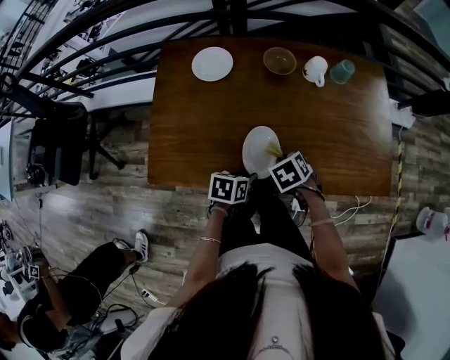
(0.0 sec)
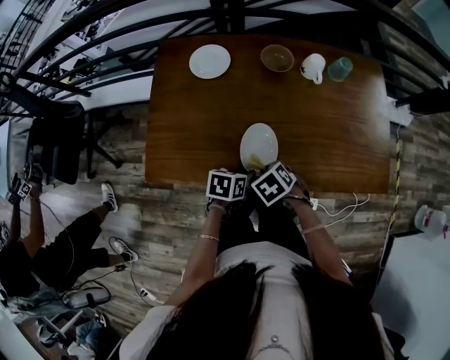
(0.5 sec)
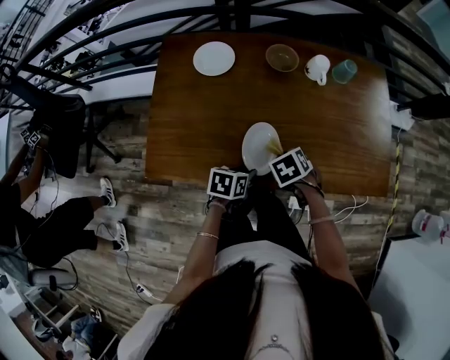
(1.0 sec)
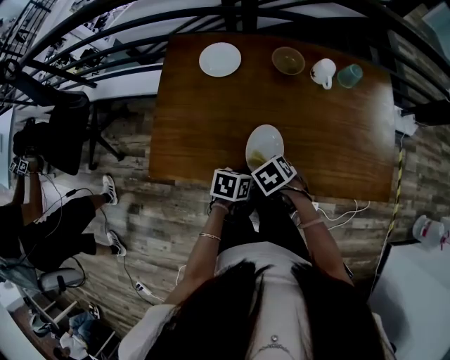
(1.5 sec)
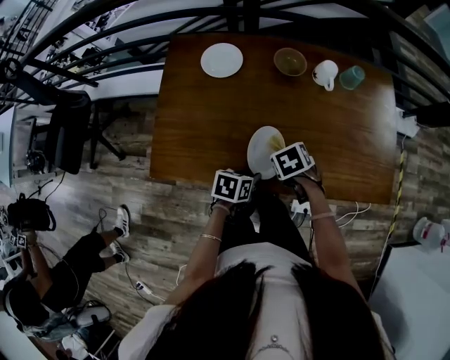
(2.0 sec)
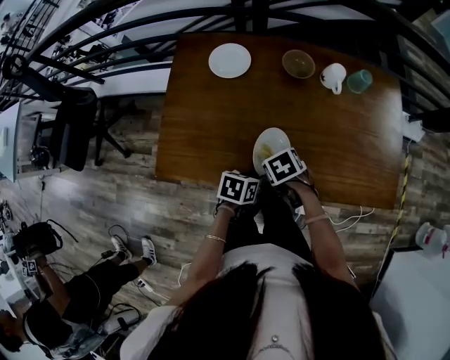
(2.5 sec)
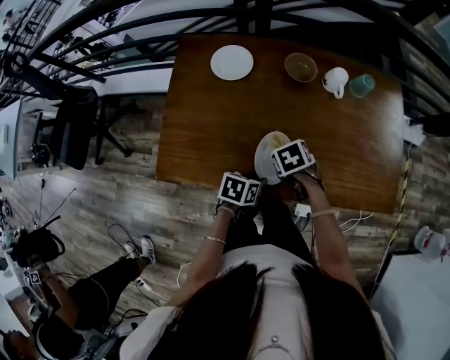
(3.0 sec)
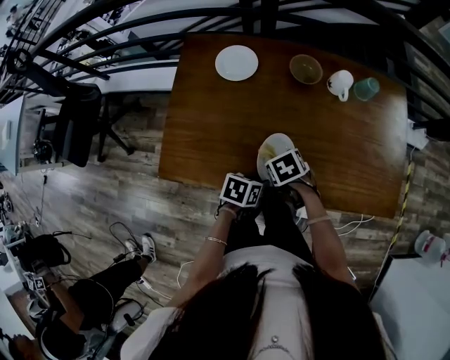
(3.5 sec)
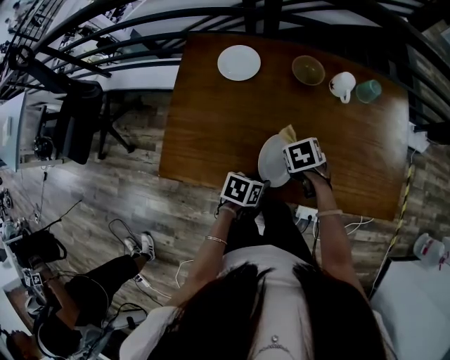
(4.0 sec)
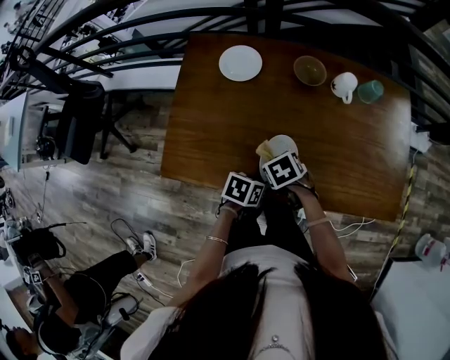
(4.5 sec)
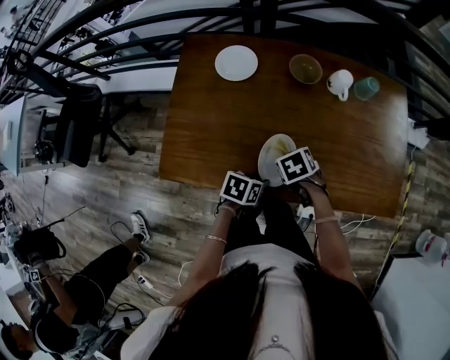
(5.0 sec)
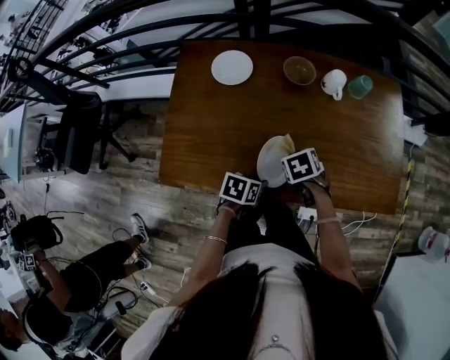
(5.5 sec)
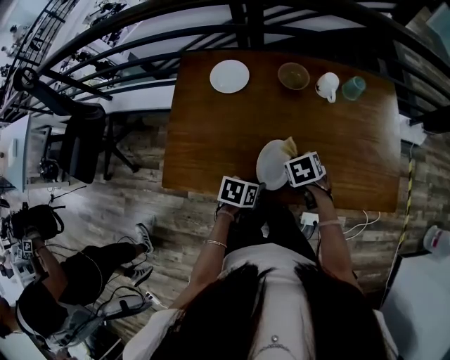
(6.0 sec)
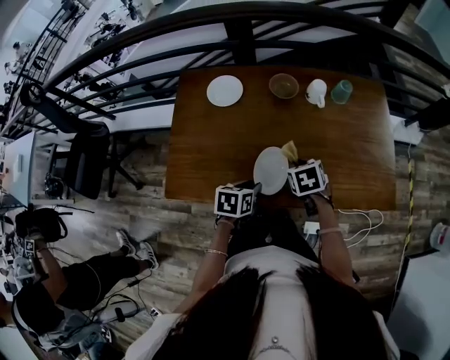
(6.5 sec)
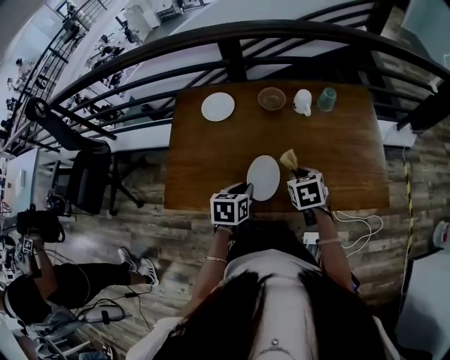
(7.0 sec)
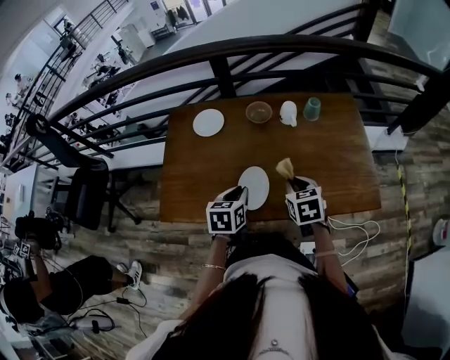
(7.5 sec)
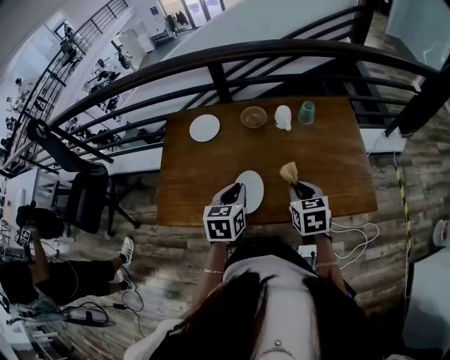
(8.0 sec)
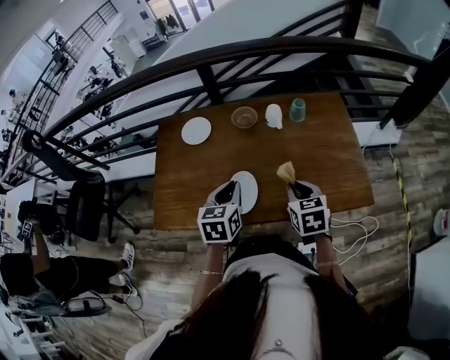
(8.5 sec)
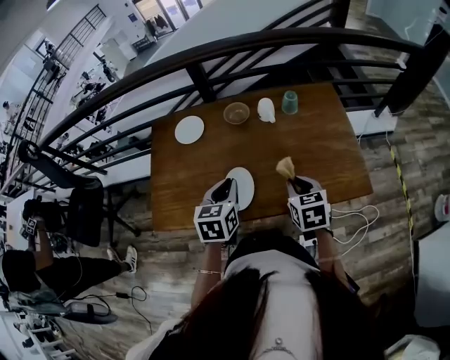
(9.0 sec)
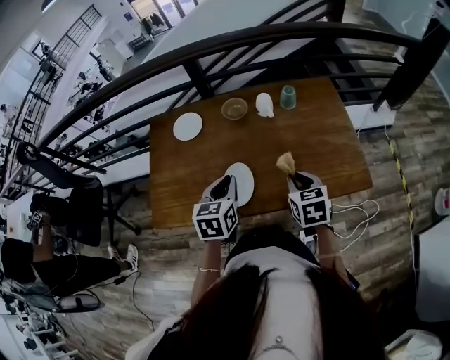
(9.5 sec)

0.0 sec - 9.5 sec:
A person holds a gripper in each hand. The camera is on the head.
5.5 sec - 7.5 sec: Both grippers move upward, approximately 15 cm. The left gripper rotates roughly 30 degrees, while the right gripper swivels roughly 30 degrees.
7.5 sec - 9.5 sec: The left gripper travels upward by roughly 5 cm. The right gripper goes roughly 5 cm to the right.

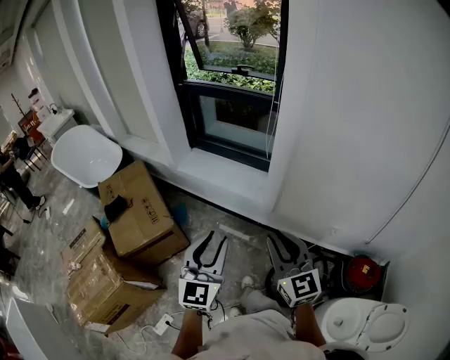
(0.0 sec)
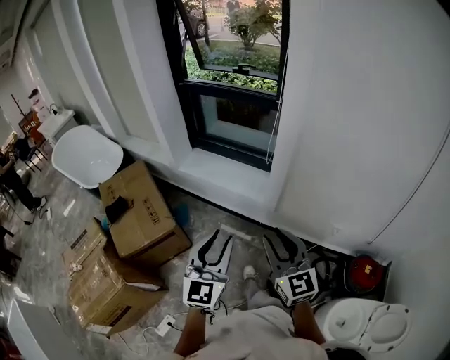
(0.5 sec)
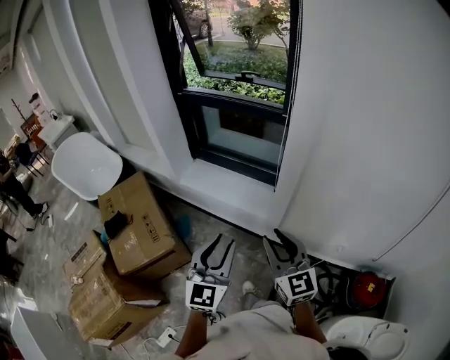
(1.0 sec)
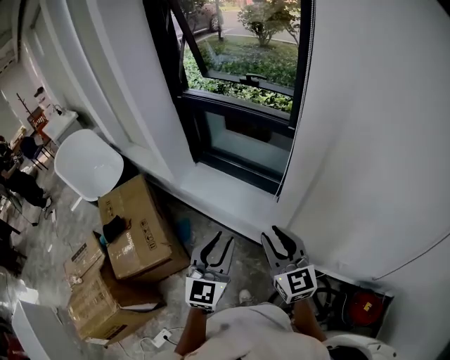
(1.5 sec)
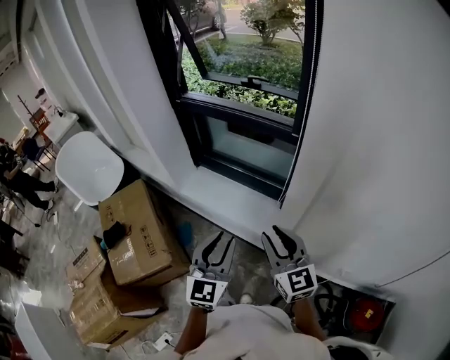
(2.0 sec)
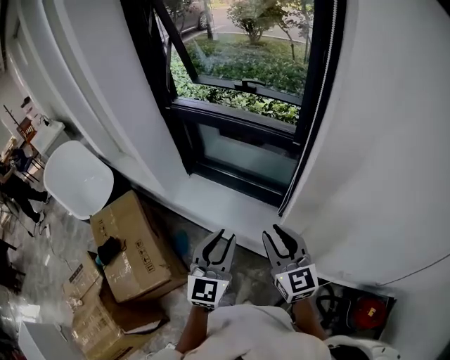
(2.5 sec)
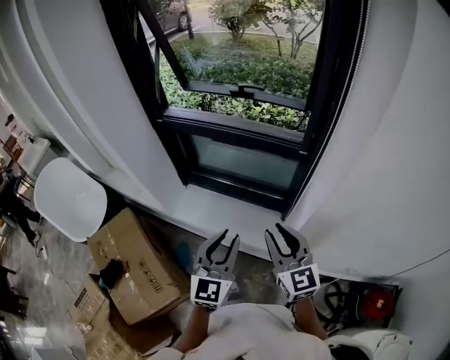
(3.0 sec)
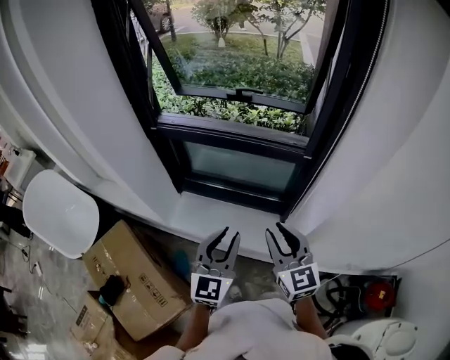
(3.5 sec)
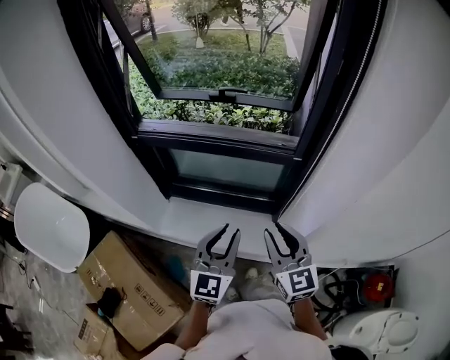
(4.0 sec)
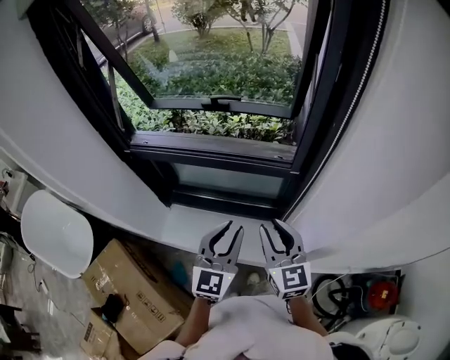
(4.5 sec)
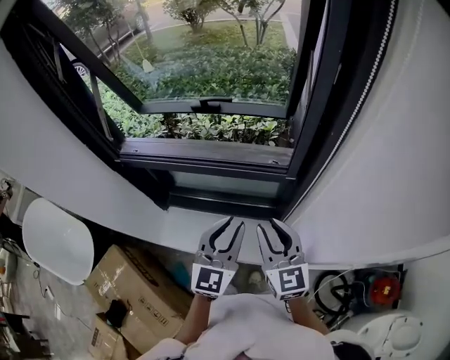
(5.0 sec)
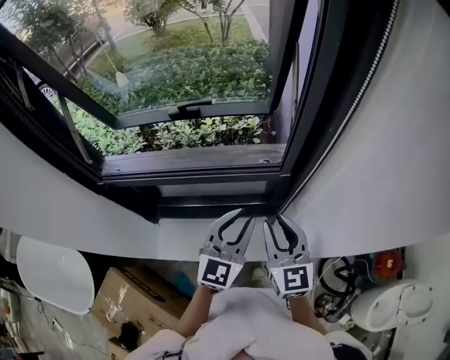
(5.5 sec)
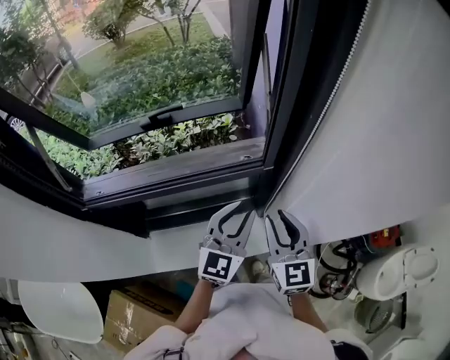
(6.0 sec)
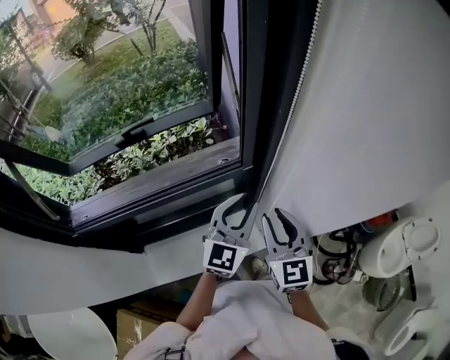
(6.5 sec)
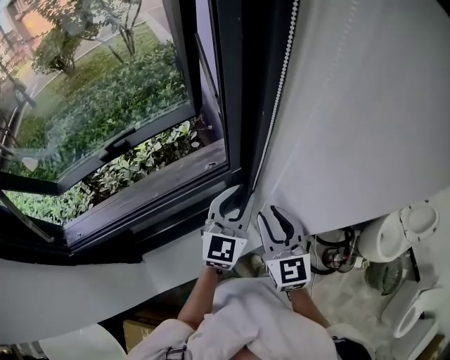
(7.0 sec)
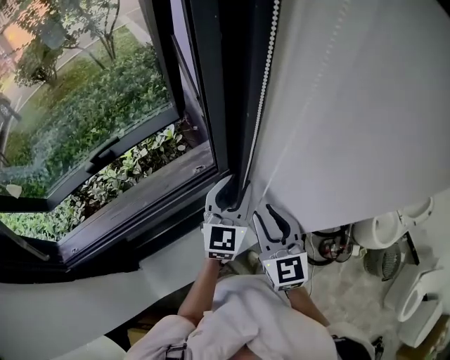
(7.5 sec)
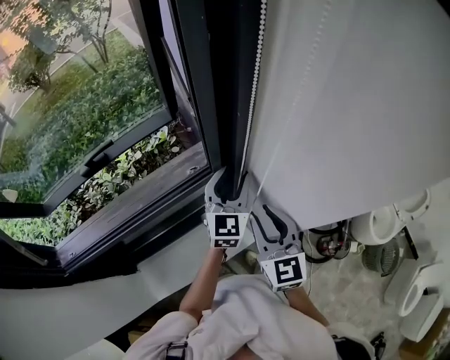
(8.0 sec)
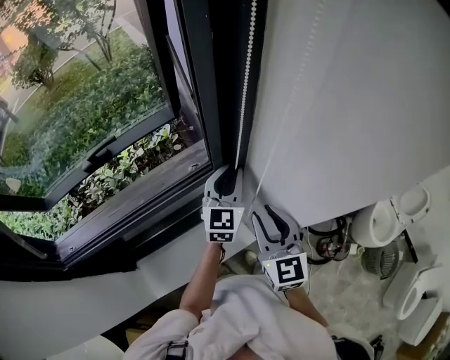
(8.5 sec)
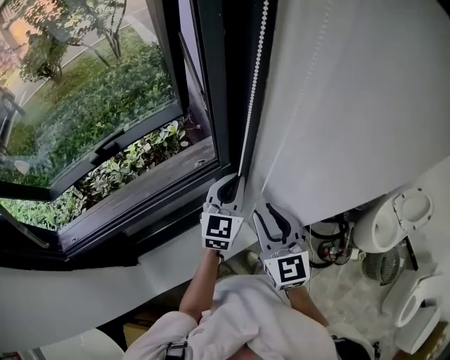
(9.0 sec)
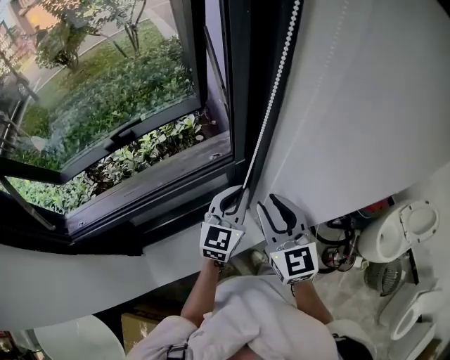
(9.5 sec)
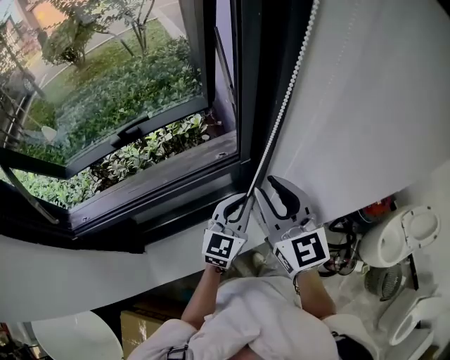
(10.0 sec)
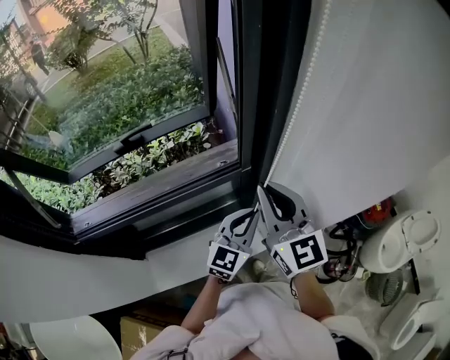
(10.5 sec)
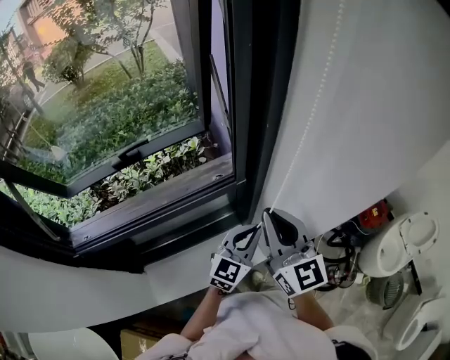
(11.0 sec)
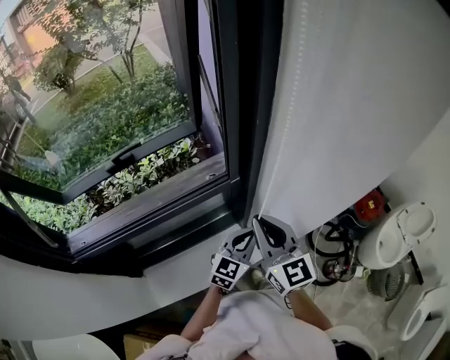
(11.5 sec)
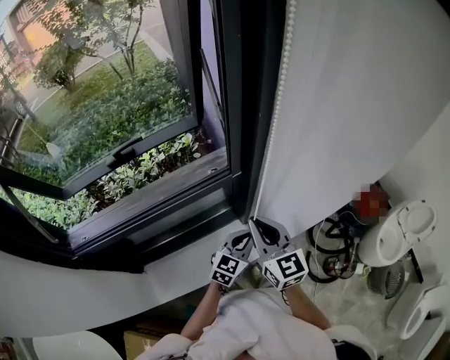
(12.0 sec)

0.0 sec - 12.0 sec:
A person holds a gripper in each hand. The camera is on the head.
0.0 sec - 2.0 sec: Both grippers travel together forward, some 30 cm.
2.0 sec - 4.0 sec: The grippers both shift forward by some 25 cm. The left gripper changes its angle by some 20 degrees. The right gripper turns by some 20 degrees.
4.0 sec - 6.0 sec: The left gripper changes place by roughly 20 cm, and turns by about 30 degrees, while the right gripper changes place by about 15 cm, and rotates about 30 degrees.
6.0 sec - 8.0 sec: The right gripper shifts approximately 5 cm to the right; the left gripper heads forward and to the right, covering approximately 15 cm, and opens its fingers.
8.0 sec - 10.0 sec: The left gripper moves backward, about 10 cm, and closes; the right gripper travels upward and to the left by about 10 cm.
10.0 sec - 12.0 sec: The right gripper heads downward, covering some 10 cm, and closes its fingers. Meanwhile the left gripper shifts about 15 cm downward and backward.

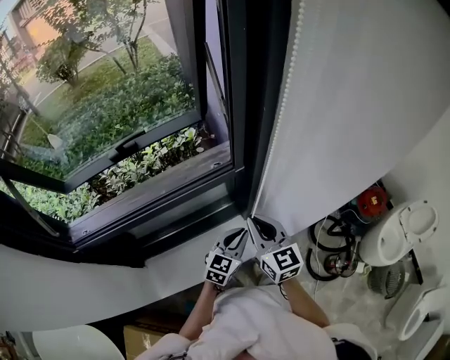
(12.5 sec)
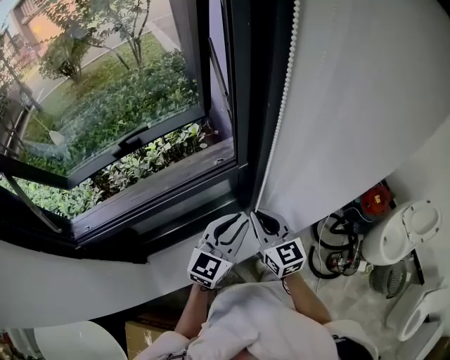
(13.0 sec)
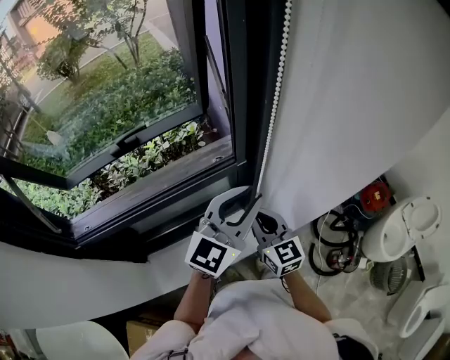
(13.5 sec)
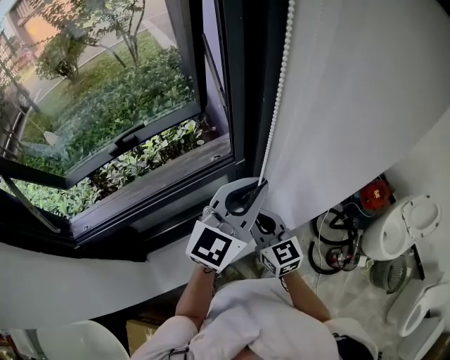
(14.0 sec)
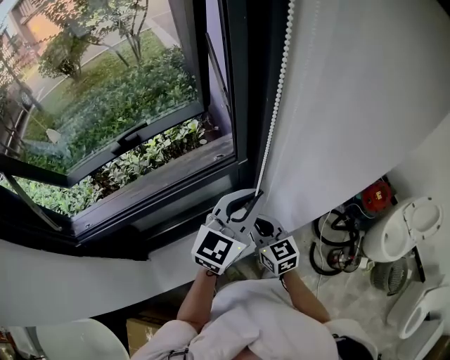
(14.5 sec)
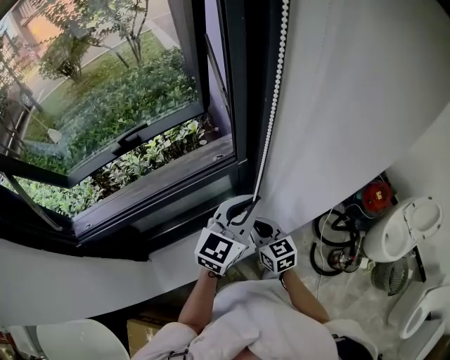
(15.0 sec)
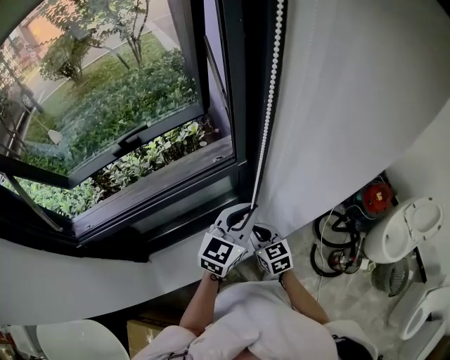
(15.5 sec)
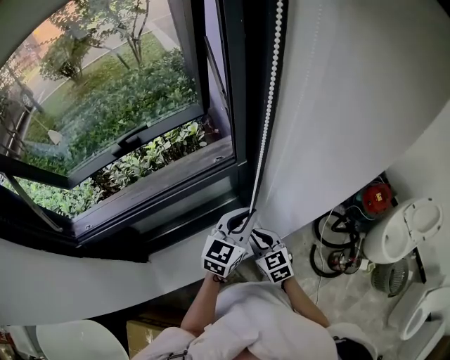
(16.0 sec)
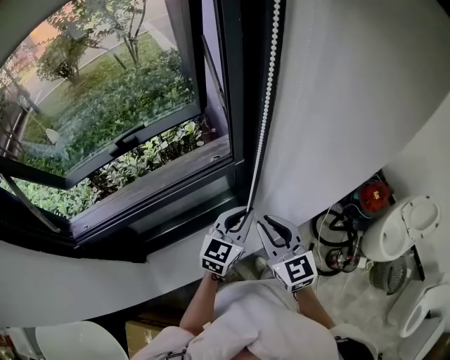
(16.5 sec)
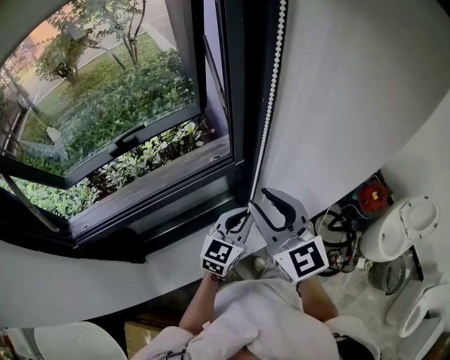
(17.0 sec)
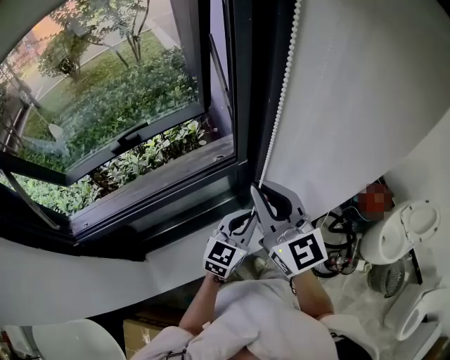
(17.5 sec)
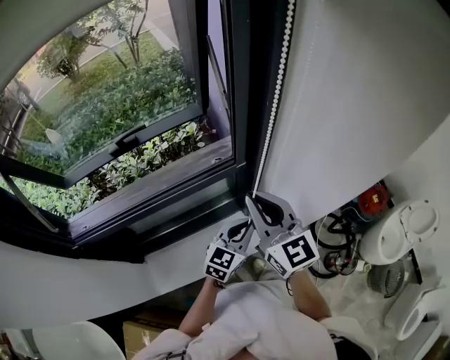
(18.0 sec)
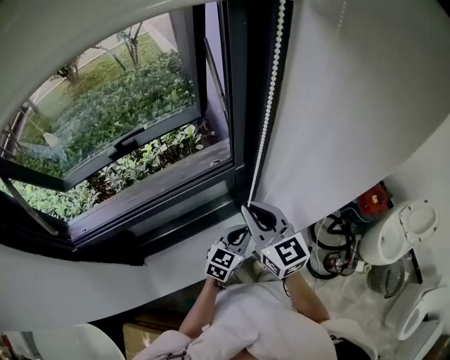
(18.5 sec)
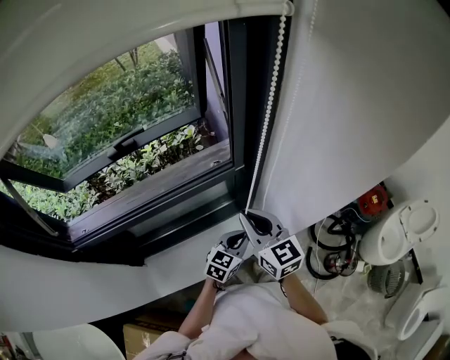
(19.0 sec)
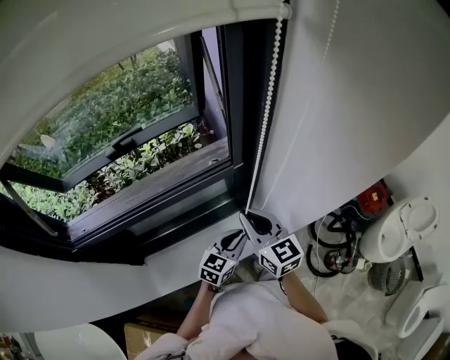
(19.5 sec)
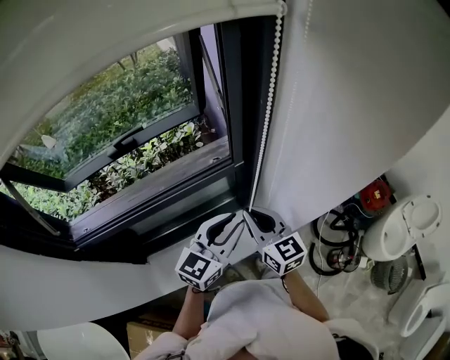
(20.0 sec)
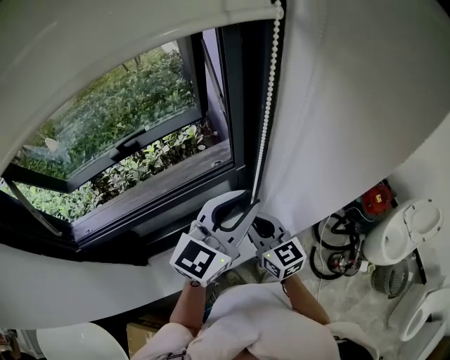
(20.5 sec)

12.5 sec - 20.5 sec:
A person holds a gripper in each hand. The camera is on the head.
12.5 sec - 14.5 sec: The right gripper goes roughly 5 cm downward. The left gripper moves upward, some 20 cm.
14.5 sec - 16.5 sec: The left gripper goes roughly 10 cm downward; the right gripper travels upward by some 10 cm.
16.5 sec - 18.5 sec: The left gripper shifts about 10 cm downward, while the right gripper travels upward and back again, some 15 cm each way.
18.5 sec - 20.5 sec: The left gripper moves upward, about 25 cm, and swivels approximately 20 degrees. The right gripper moves downward, some 5 cm.
